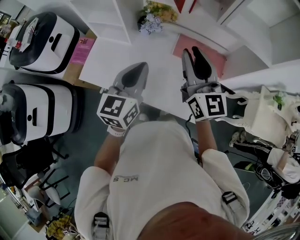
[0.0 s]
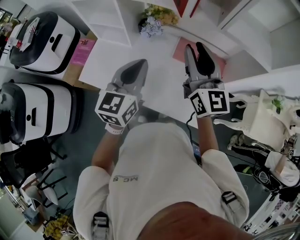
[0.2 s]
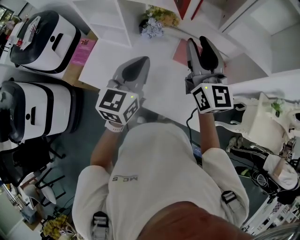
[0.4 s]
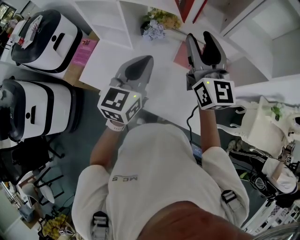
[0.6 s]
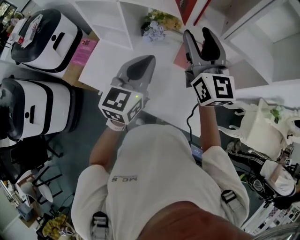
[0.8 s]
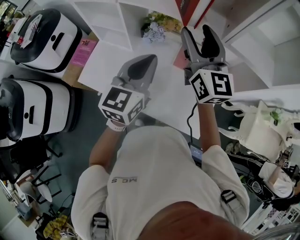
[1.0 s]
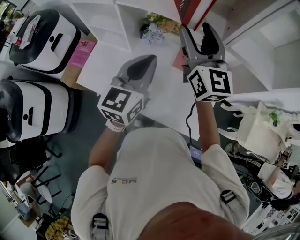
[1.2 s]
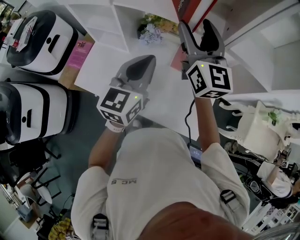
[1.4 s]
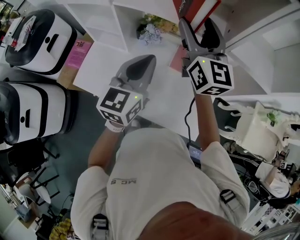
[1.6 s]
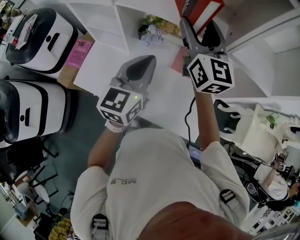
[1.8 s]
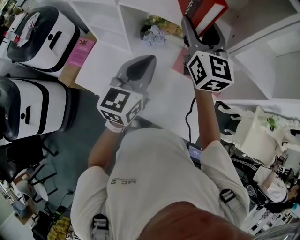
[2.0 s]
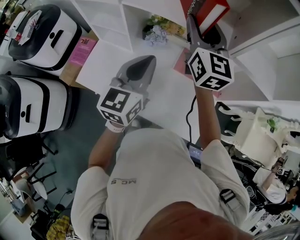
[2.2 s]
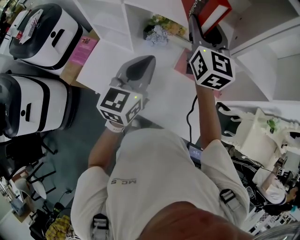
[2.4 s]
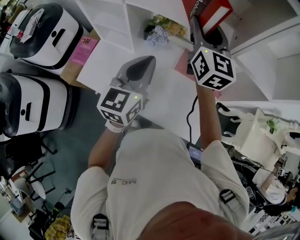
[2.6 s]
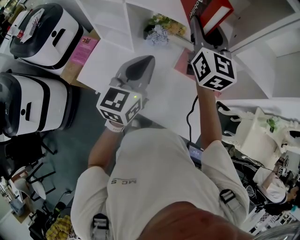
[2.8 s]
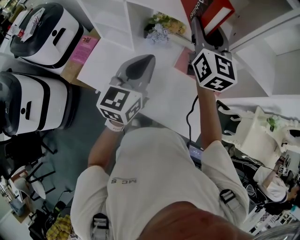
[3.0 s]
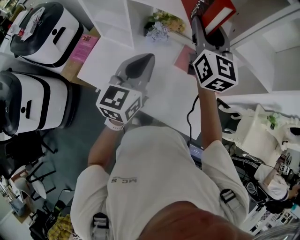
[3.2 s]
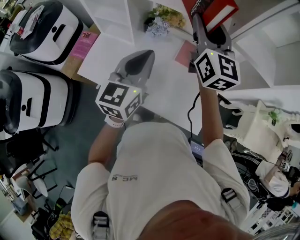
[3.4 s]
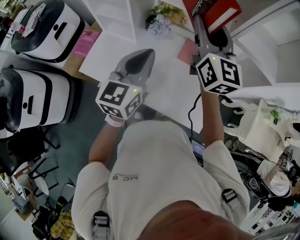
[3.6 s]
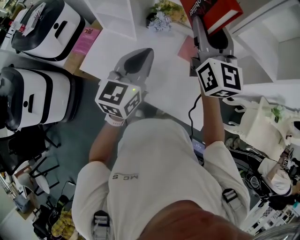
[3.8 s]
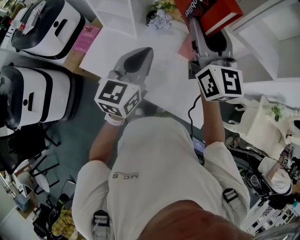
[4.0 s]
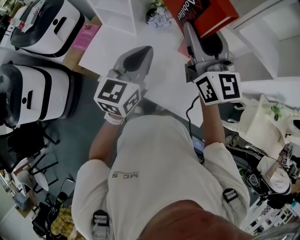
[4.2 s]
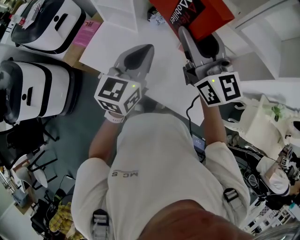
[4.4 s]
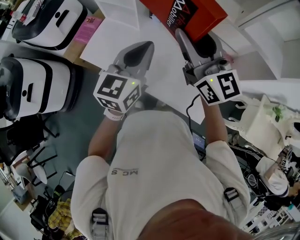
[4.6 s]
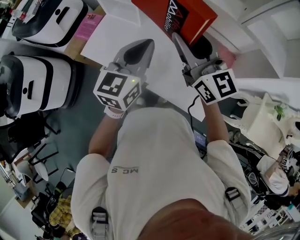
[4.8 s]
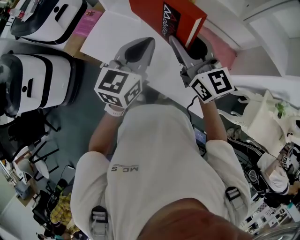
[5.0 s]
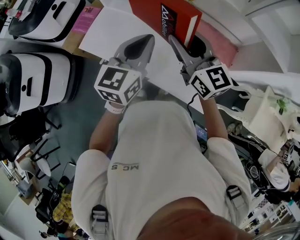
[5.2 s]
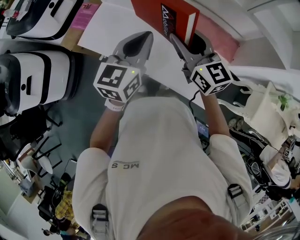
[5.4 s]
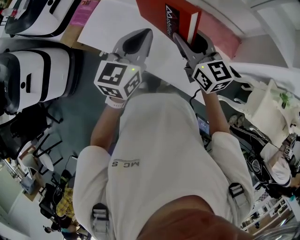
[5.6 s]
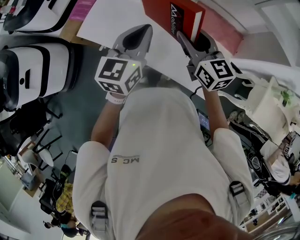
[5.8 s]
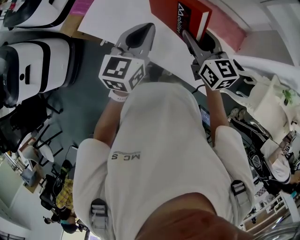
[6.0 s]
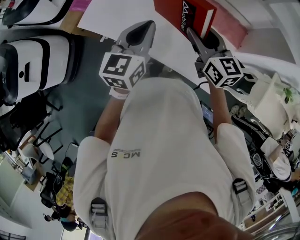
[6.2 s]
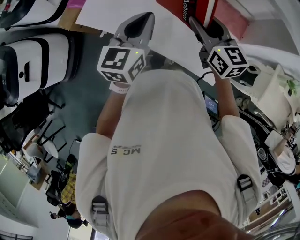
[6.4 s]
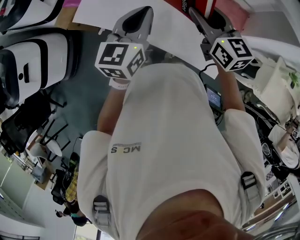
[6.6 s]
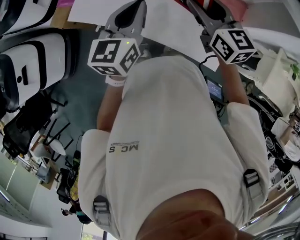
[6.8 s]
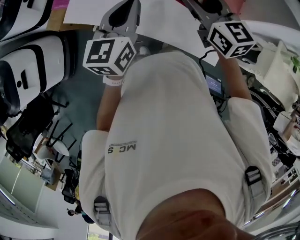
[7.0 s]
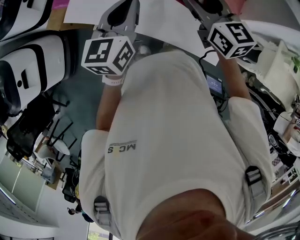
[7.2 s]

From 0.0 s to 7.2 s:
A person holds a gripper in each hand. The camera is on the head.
From 0.0 s to 1.4 s: The left gripper moves forward, some 10 cm, while the right gripper travels forward by roughly 15 cm, and opens up.
From 1.4 s to 2.8 s: The right gripper closes.
From 2.8 s to 4.4 s: The right gripper goes about 15 cm backward, and swivels about 30 degrees. Meanwhile the left gripper moves backward, some 5 cm.
From 4.4 s to 5.8 s: The left gripper moves downward, approximately 5 cm. The right gripper heads downward, covering roughly 20 cm, and turns by roughly 30 degrees.
From 5.8 s to 7.2 s: The grippers make only small movements.

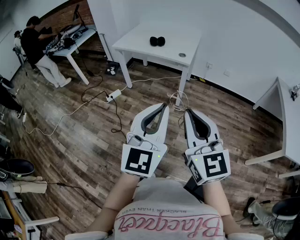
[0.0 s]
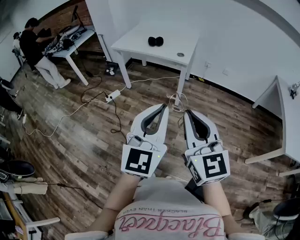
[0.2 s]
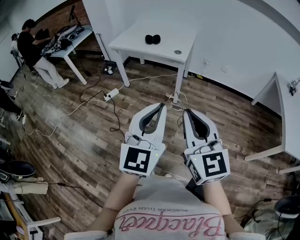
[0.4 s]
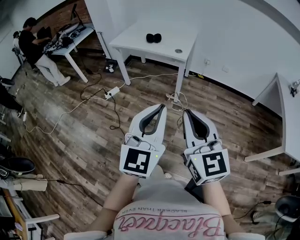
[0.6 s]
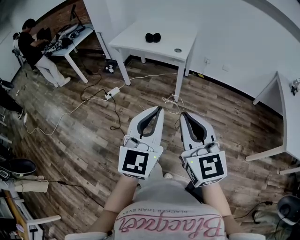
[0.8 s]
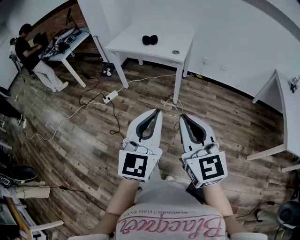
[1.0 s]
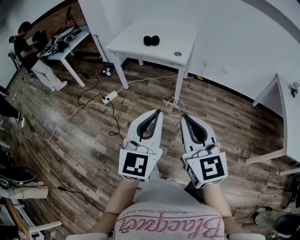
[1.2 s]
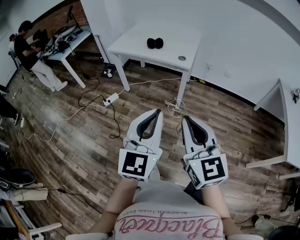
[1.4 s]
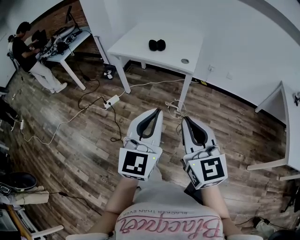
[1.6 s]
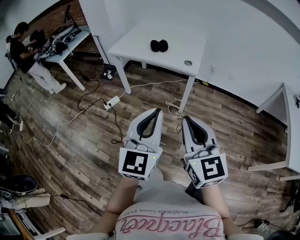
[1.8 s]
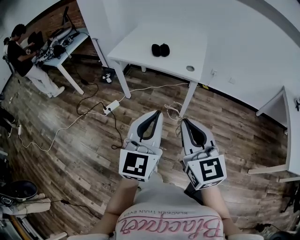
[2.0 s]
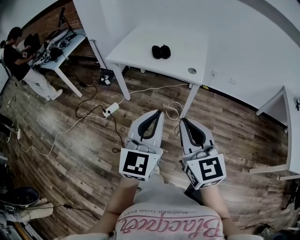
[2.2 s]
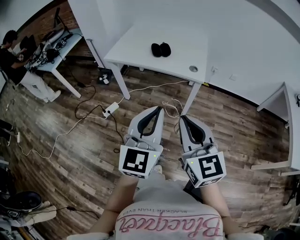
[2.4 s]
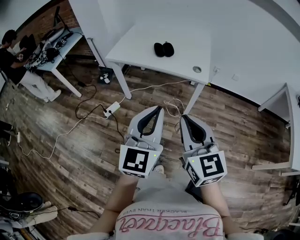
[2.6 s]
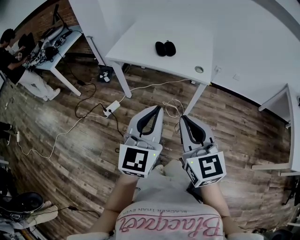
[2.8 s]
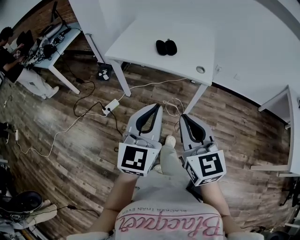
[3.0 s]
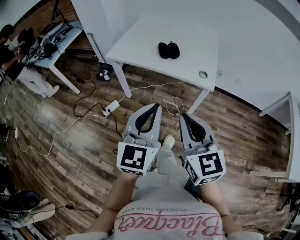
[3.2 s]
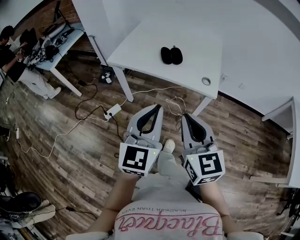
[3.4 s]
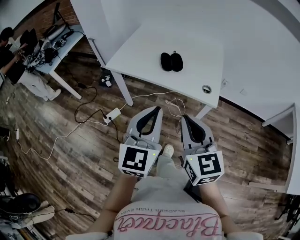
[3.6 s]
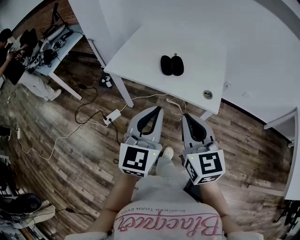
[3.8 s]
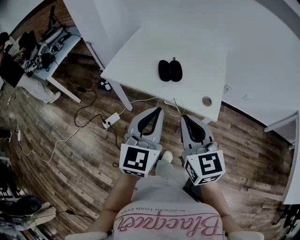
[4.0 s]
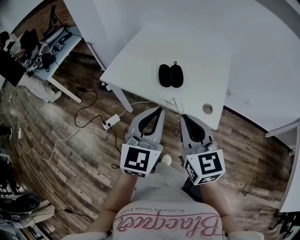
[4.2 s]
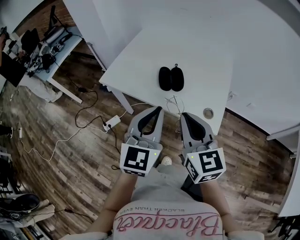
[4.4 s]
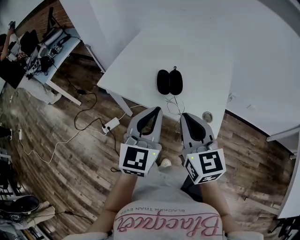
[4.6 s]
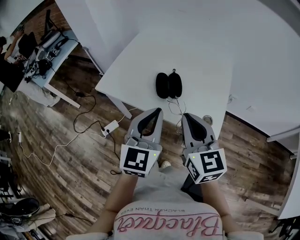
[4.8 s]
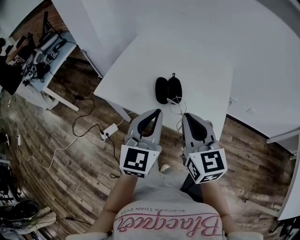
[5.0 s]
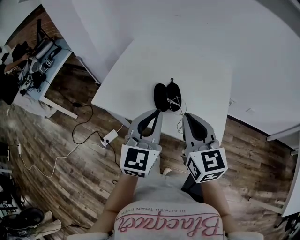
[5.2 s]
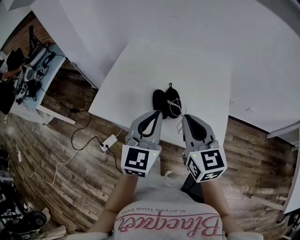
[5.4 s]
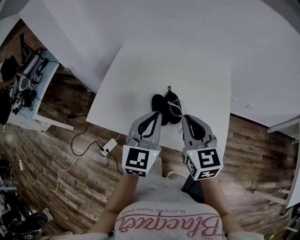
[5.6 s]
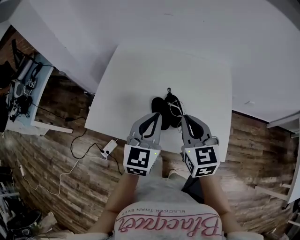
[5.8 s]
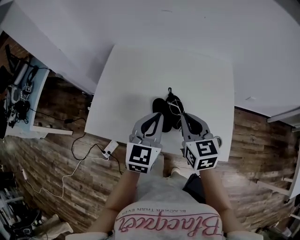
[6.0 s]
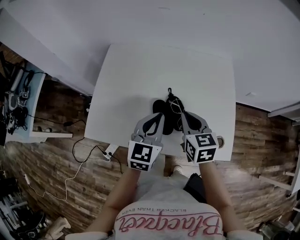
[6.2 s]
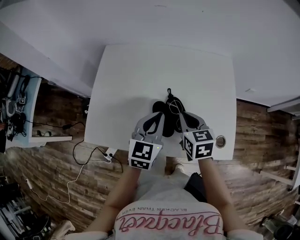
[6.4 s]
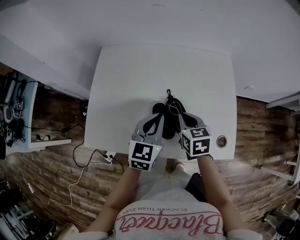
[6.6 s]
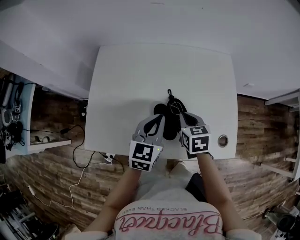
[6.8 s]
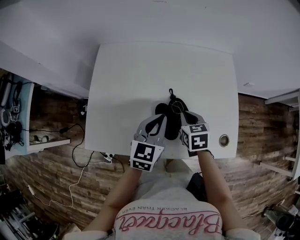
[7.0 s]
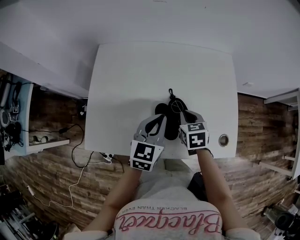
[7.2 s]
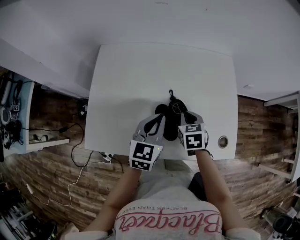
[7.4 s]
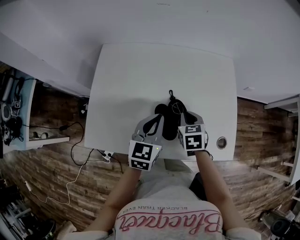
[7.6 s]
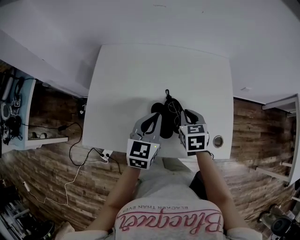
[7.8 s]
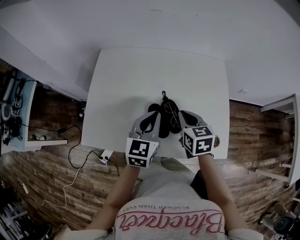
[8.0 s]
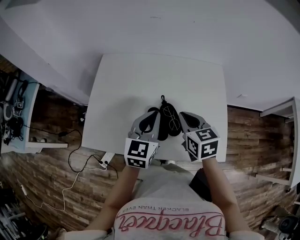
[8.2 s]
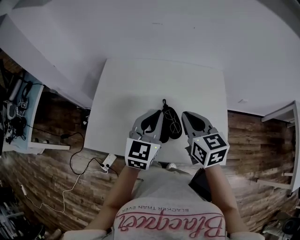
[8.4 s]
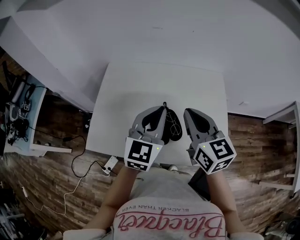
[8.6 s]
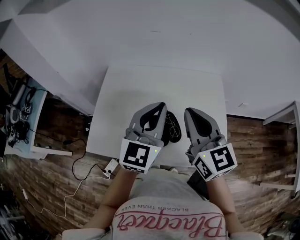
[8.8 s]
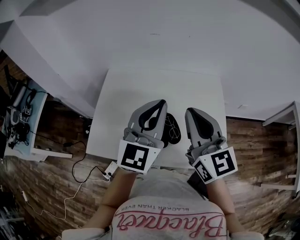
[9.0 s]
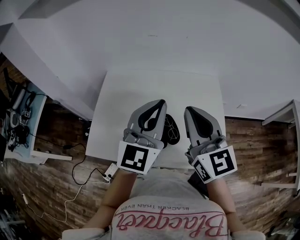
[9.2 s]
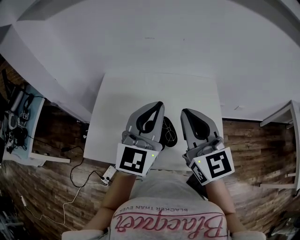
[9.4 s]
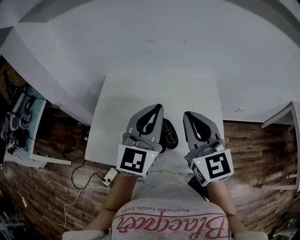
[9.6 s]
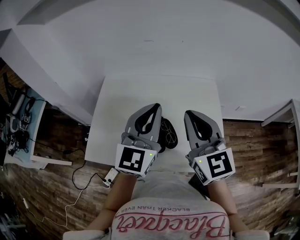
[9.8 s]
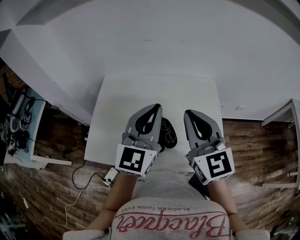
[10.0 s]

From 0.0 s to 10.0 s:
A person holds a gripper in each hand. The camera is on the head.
From 0.0 s to 1.4 s: Both grippers move forward, some 10 cm.
From 1.4 s to 2.8 s: Both grippers move forward and to the left, roughly 25 cm.
From 2.8 s to 4.2 s: The two grippers go some 30 cm forward.
From 4.2 s to 5.8 s: The grippers both shift forward by approximately 25 cm.
From 5.8 s to 7.2 s: The right gripper heads downward and forward, covering roughly 20 cm, and changes its angle by roughly 30 degrees. Meanwhile the left gripper moves downward and forward, approximately 10 cm.
From 7.2 s to 8.6 s: The right gripper is displaced upward by roughly 25 cm, and tilts its fingers about 40 degrees upward. Meanwhile the left gripper is displaced upward by about 15 cm, and rotates approximately 20 degrees.
From 8.6 s to 10.0 s: The two grippers go about 5 cm upward.

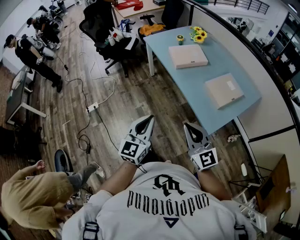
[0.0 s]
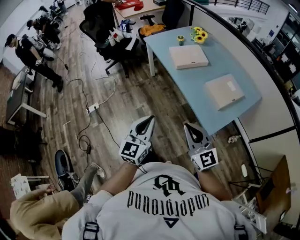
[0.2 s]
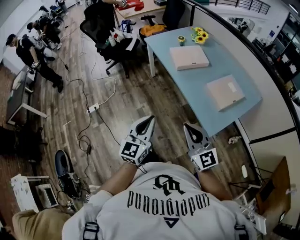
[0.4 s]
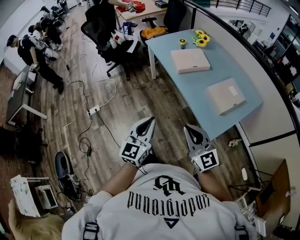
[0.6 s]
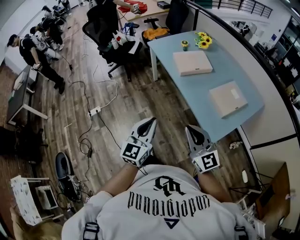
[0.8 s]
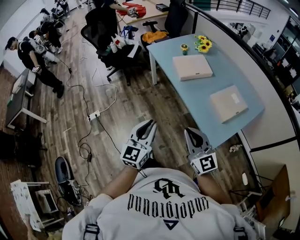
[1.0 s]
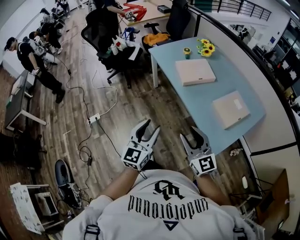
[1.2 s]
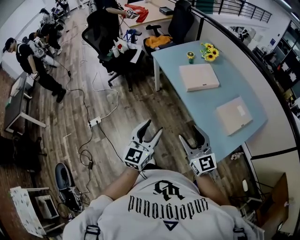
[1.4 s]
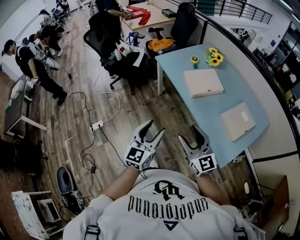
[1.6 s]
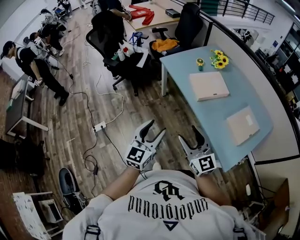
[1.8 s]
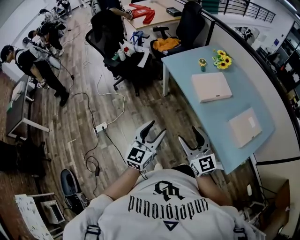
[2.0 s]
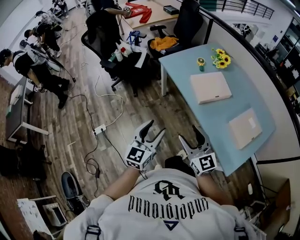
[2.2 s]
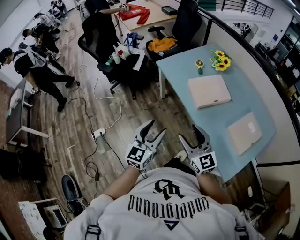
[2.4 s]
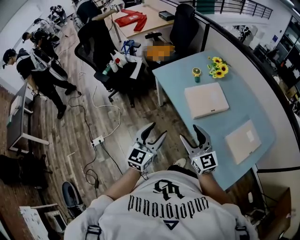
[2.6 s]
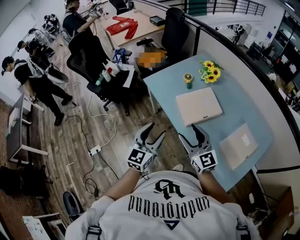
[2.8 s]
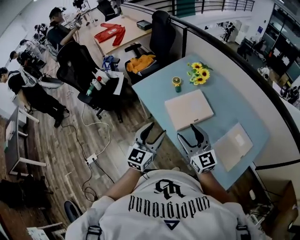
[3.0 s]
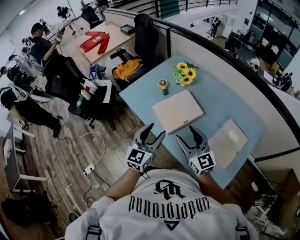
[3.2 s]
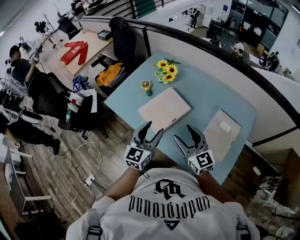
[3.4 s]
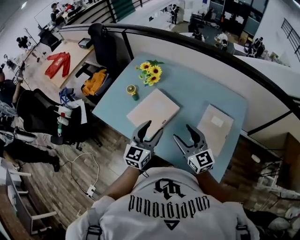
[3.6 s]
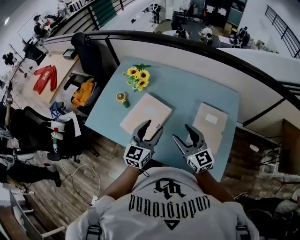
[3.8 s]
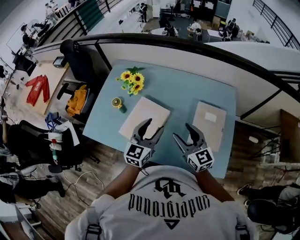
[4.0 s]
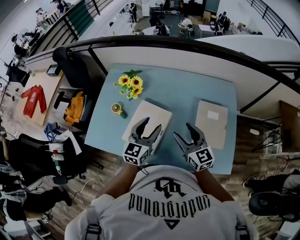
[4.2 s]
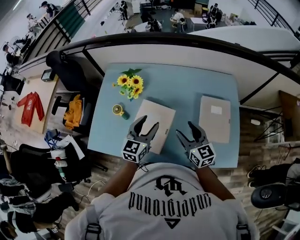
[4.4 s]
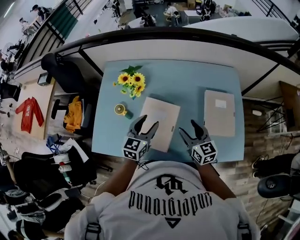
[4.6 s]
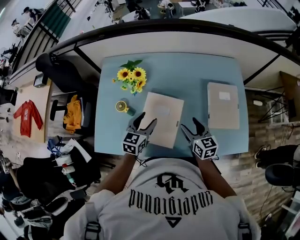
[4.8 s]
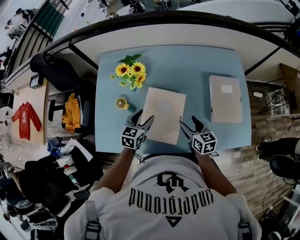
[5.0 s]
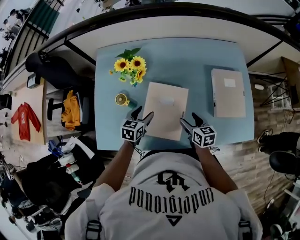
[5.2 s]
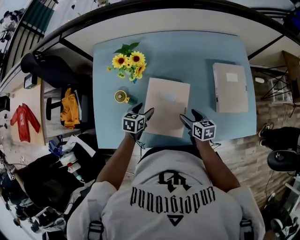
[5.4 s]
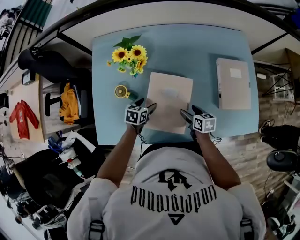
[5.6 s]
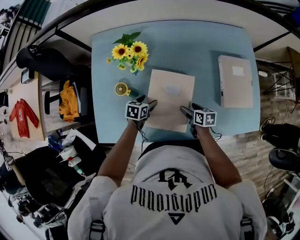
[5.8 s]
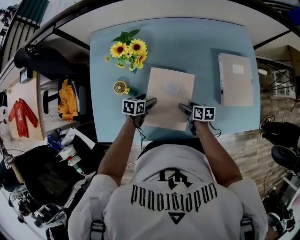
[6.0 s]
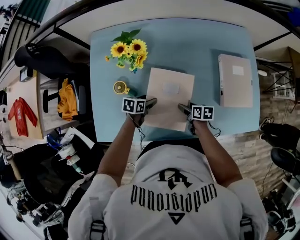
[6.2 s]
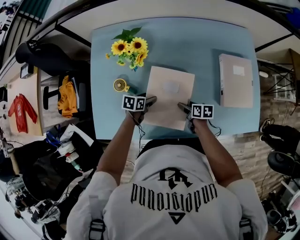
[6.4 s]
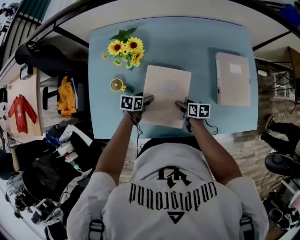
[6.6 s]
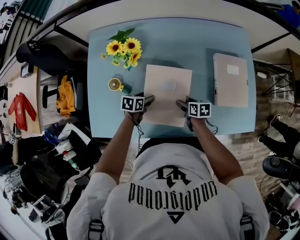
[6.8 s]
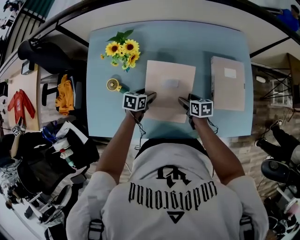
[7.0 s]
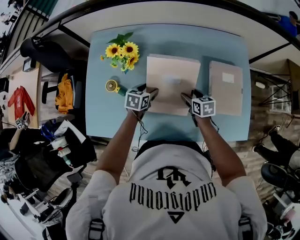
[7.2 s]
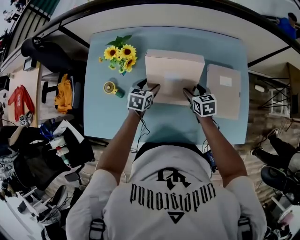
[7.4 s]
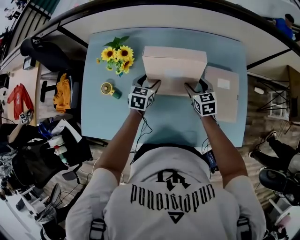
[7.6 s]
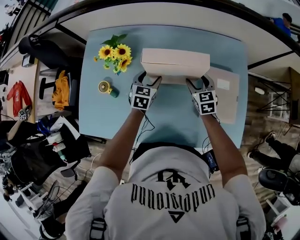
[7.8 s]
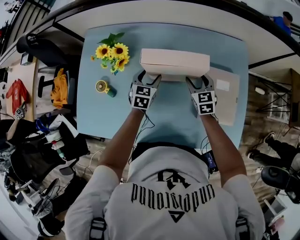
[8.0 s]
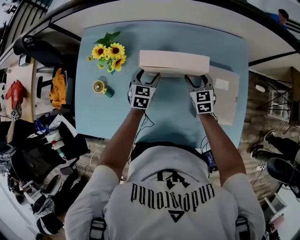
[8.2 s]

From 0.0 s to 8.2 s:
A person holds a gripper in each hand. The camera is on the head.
From 0.0 s to 1.6 s: The two grippers go approximately 25 cm forward and to the left. The right gripper opens its fingers, while the left gripper opens up.
From 1.6 s to 3.2 s: Both grippers move forward and to the right, roughly 35 cm.
From 3.2 s to 5.0 s: The left gripper moves some 35 cm, and changes its angle by approximately 50 degrees, while the right gripper shifts some 20 cm downward, and swivels roughly 60 degrees.
From 5.0 s to 6.6 s: The grippers both shift downward by some 15 cm. The left gripper turns by about 30 degrees. The right gripper turns by about 30 degrees.
From 6.6 s to 8.2 s: Both grippers move forward, to the right and upward, approximately 25 cm. The right gripper rolls counterclockwise, seen from behind, by roughly 50 degrees; the left gripper rotates roughly 40 degrees.
